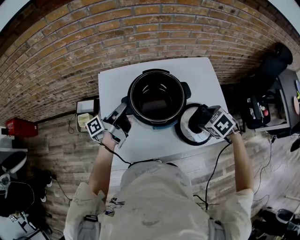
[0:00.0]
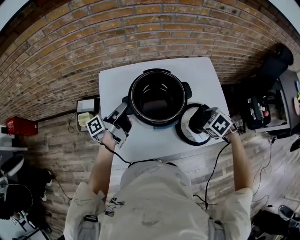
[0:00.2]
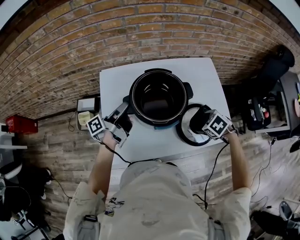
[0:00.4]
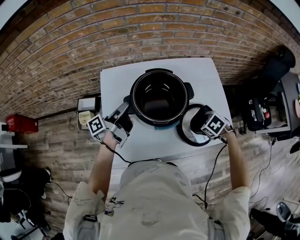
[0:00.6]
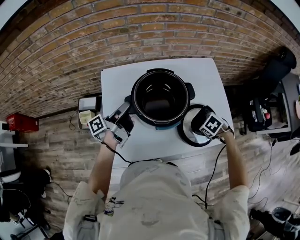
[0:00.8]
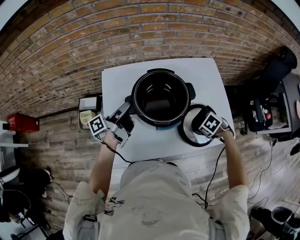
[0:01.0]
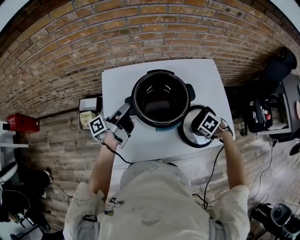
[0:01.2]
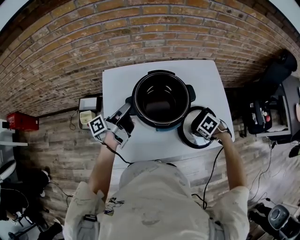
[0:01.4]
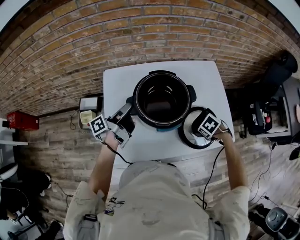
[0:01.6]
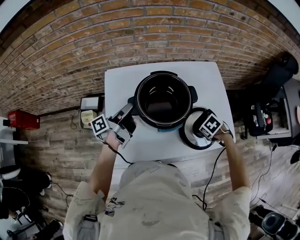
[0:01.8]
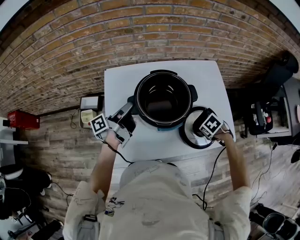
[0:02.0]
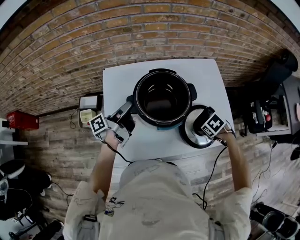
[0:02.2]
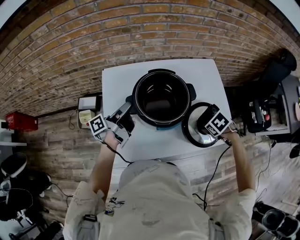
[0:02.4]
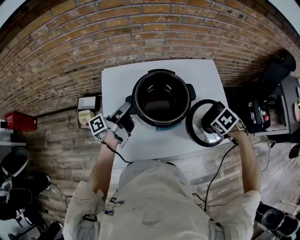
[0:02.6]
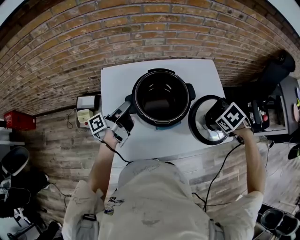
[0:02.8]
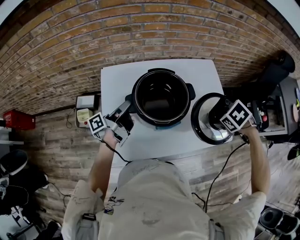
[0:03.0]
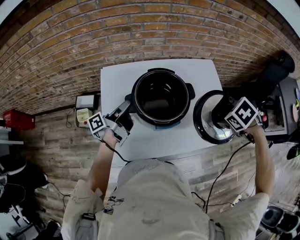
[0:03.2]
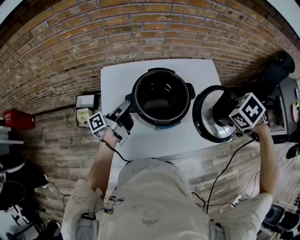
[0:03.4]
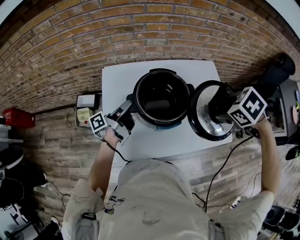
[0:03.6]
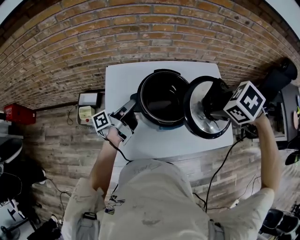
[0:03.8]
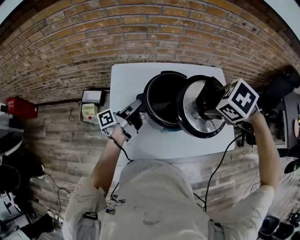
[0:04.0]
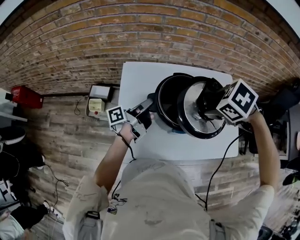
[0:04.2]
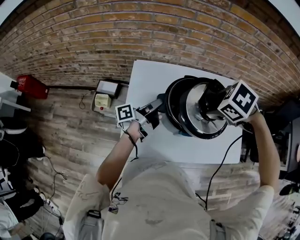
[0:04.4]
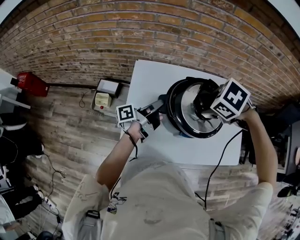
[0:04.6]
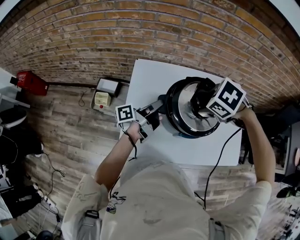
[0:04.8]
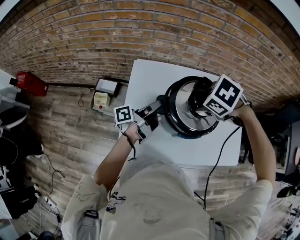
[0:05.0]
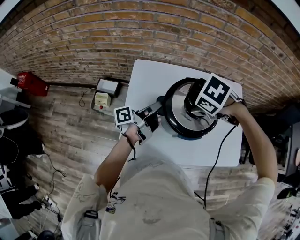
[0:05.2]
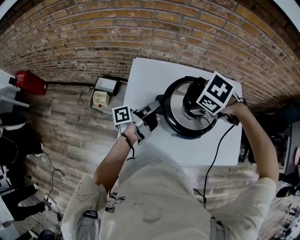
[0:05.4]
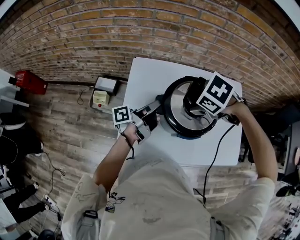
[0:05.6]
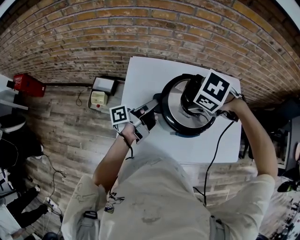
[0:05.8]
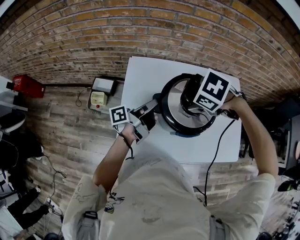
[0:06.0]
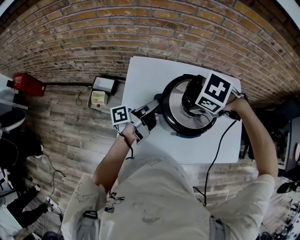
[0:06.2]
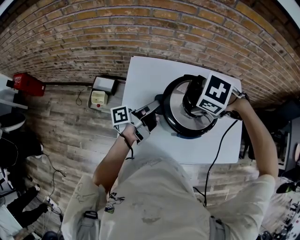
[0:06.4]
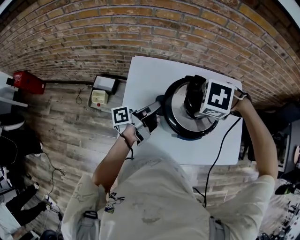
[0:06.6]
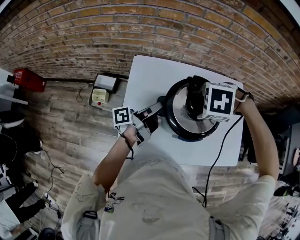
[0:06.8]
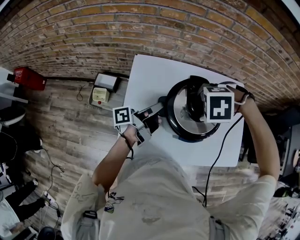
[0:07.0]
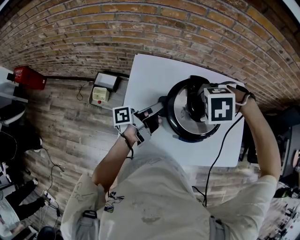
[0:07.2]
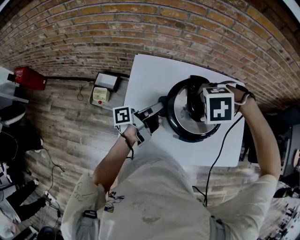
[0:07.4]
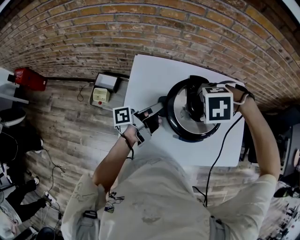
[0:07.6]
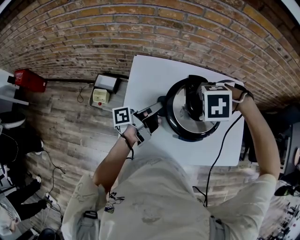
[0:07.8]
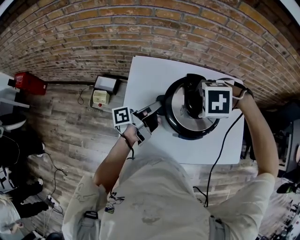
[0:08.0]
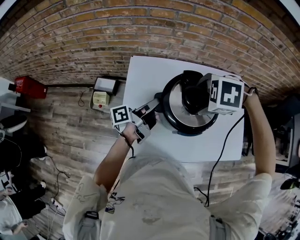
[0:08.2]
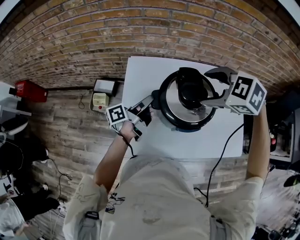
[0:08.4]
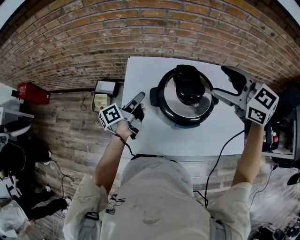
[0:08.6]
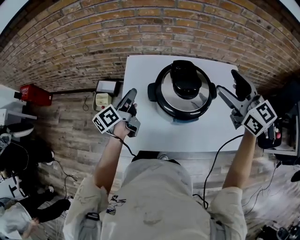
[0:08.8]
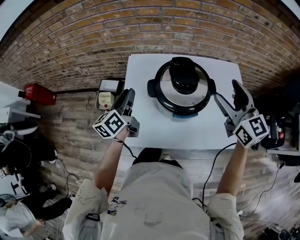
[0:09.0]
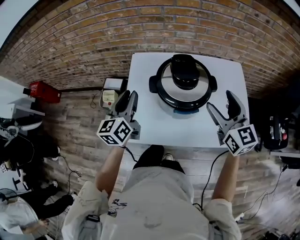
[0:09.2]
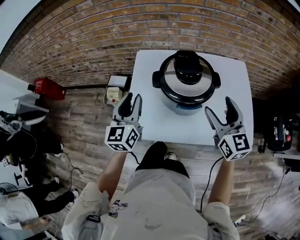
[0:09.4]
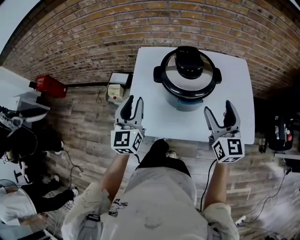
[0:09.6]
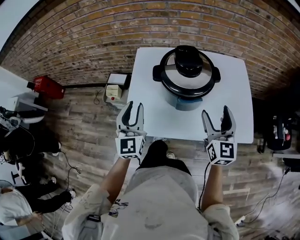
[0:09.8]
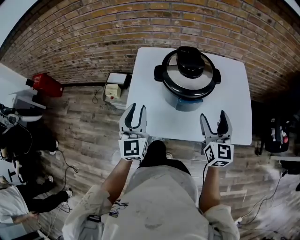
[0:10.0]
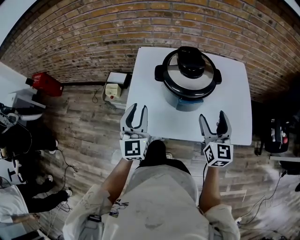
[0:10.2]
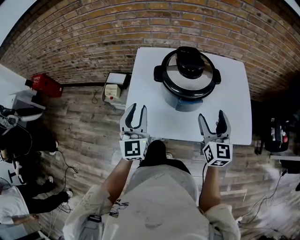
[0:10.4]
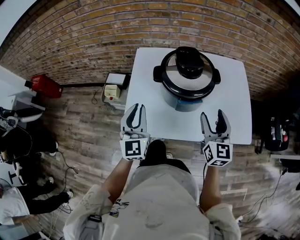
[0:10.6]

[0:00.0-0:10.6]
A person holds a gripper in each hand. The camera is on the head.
0:00.0 to 0:01.6: The right gripper goes roughly 10 cm downward.
0:01.6 to 0:03.0: The right gripper is displaced upward by approximately 15 cm.
0:03.0 to 0:04.6: The right gripper shifts by some 25 cm, and rotates roughly 30 degrees.
0:04.6 to 0:06.0: The grippers move only a little.
0:06.0 to 0:07.6: The right gripper rotates some 40 degrees.
0:07.6 to 0:09.0: The right gripper changes place by roughly 15 cm, and tips its fingers upward by roughly 80 degrees. The left gripper moves roughly 10 cm, and rolls clockwise, seen from behind, by roughly 50 degrees.
0:09.0 to 0:10.6: The left gripper shifts approximately 15 cm backward, and rotates around the line of its fingers by approximately 50 degrees, clockwise from behind; the right gripper travels downward and backward by about 15 cm, and swivels roughly 20 degrees.

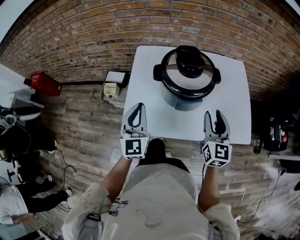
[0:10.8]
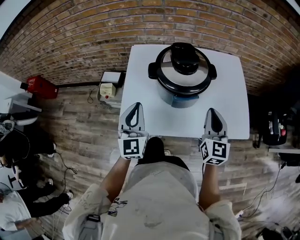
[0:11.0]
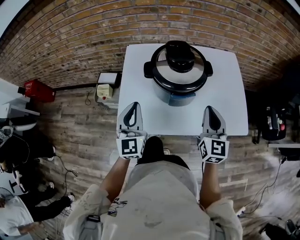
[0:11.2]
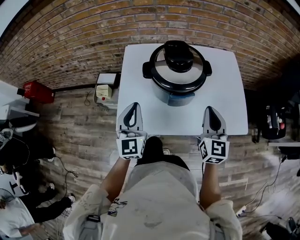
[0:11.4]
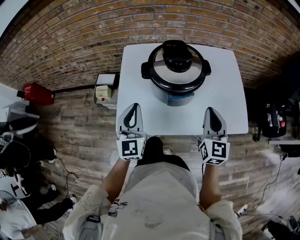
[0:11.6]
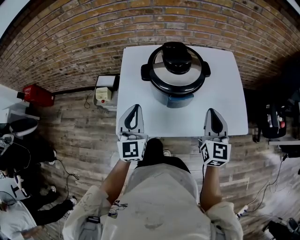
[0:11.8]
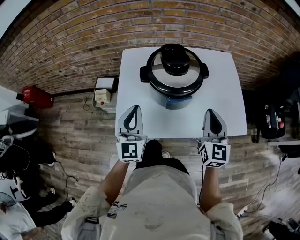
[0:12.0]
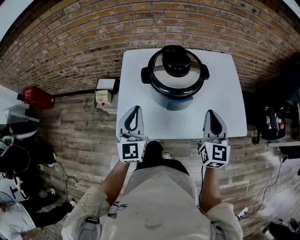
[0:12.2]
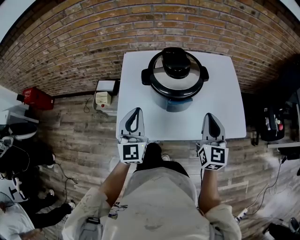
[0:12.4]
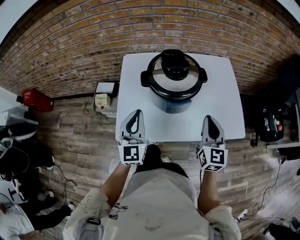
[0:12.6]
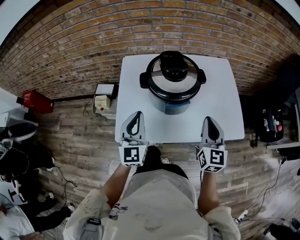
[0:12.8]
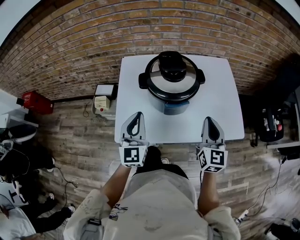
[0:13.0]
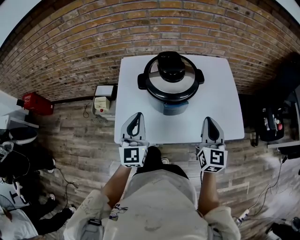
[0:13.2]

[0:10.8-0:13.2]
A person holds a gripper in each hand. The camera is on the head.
0:10.8 to 0:12.0: The right gripper closes its fingers.
0:12.0 to 0:13.2: The grippers stay close to where they were, moving slightly.

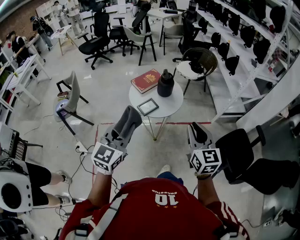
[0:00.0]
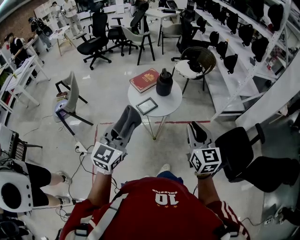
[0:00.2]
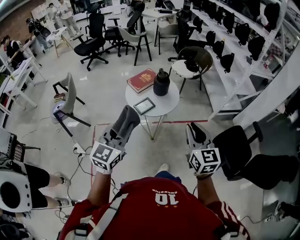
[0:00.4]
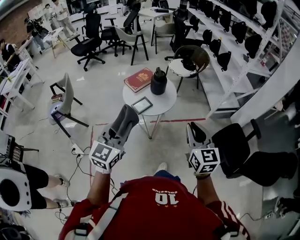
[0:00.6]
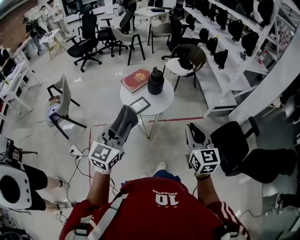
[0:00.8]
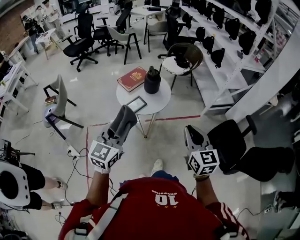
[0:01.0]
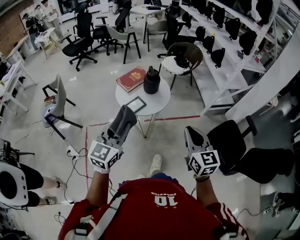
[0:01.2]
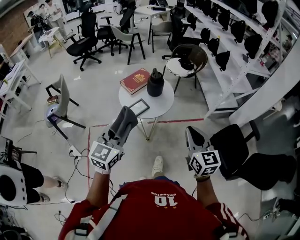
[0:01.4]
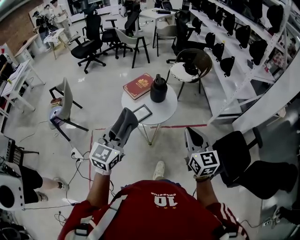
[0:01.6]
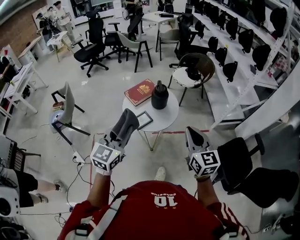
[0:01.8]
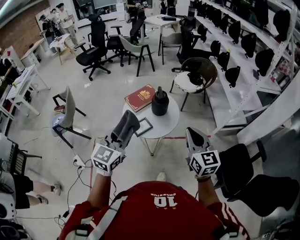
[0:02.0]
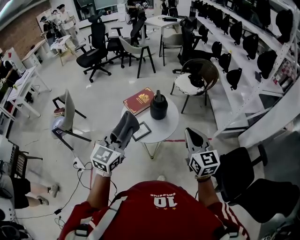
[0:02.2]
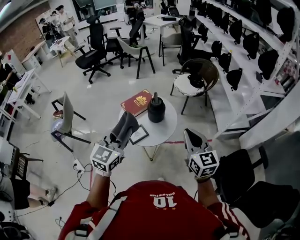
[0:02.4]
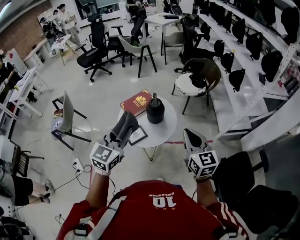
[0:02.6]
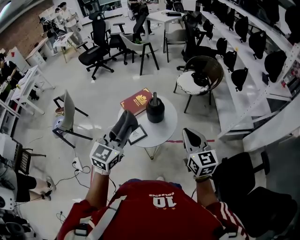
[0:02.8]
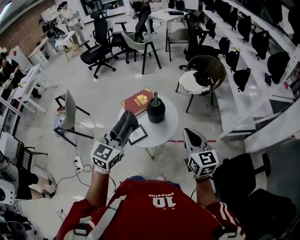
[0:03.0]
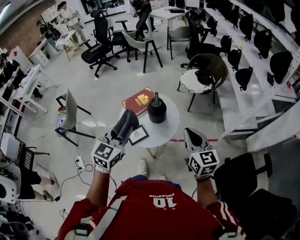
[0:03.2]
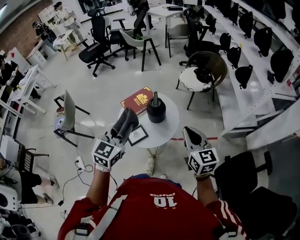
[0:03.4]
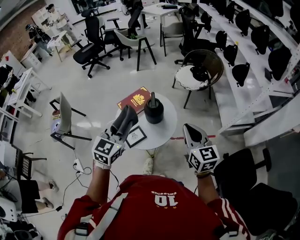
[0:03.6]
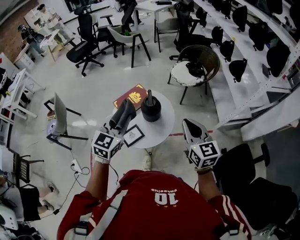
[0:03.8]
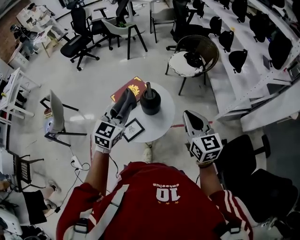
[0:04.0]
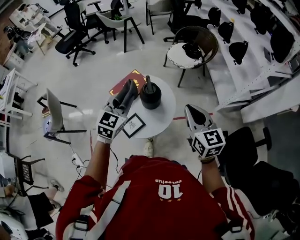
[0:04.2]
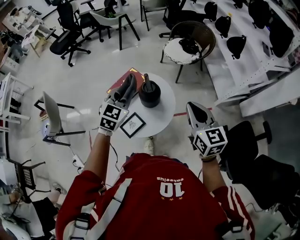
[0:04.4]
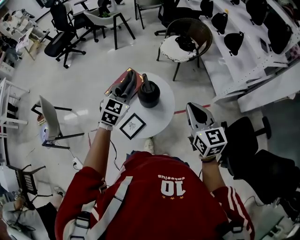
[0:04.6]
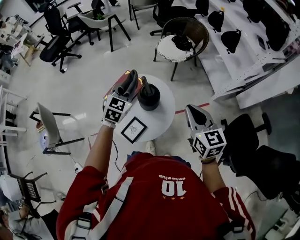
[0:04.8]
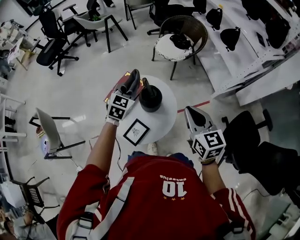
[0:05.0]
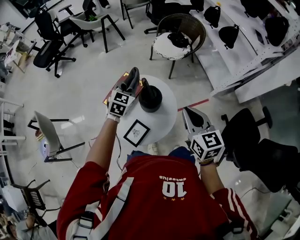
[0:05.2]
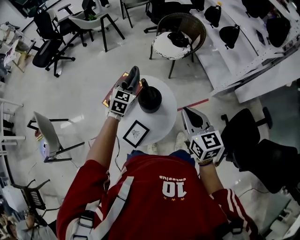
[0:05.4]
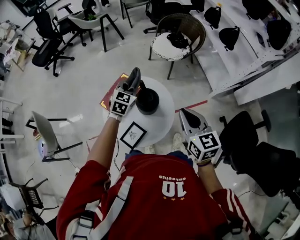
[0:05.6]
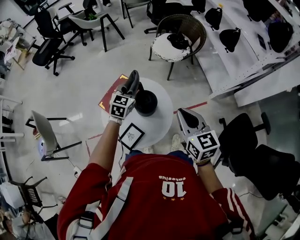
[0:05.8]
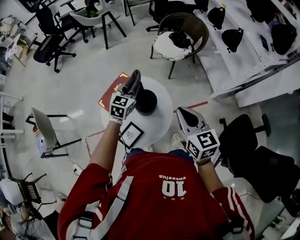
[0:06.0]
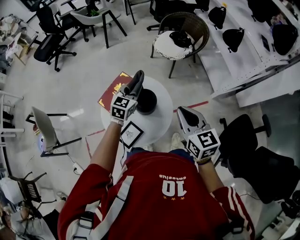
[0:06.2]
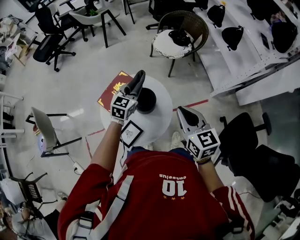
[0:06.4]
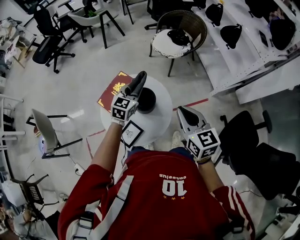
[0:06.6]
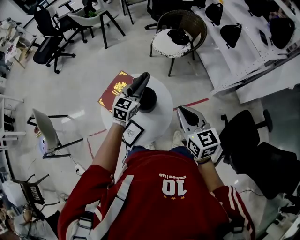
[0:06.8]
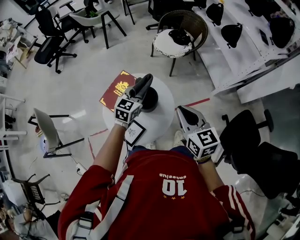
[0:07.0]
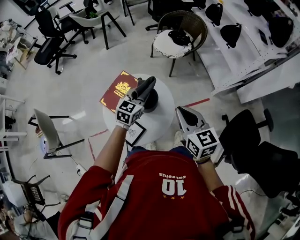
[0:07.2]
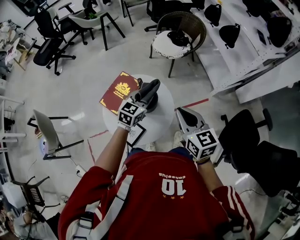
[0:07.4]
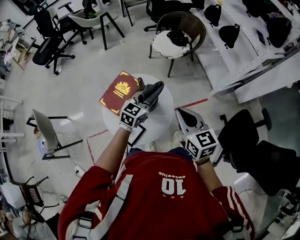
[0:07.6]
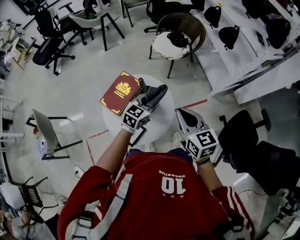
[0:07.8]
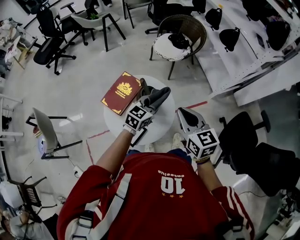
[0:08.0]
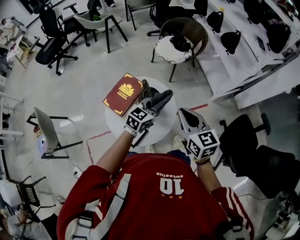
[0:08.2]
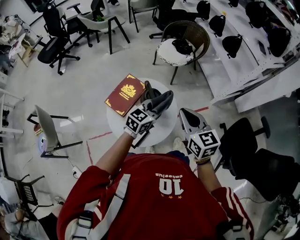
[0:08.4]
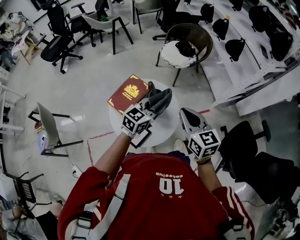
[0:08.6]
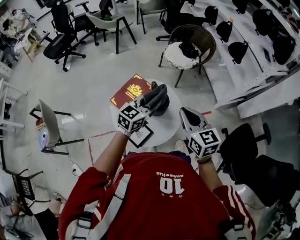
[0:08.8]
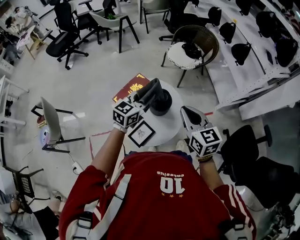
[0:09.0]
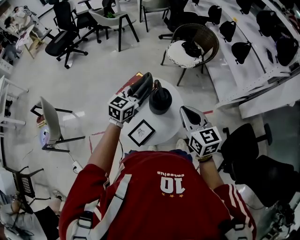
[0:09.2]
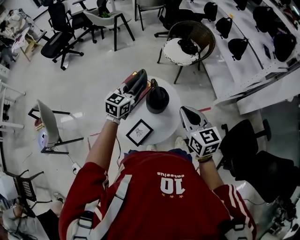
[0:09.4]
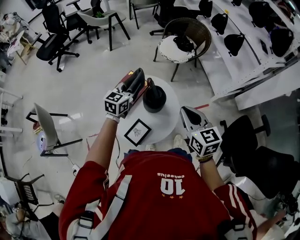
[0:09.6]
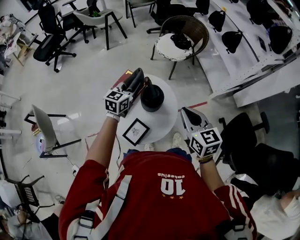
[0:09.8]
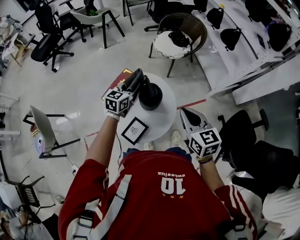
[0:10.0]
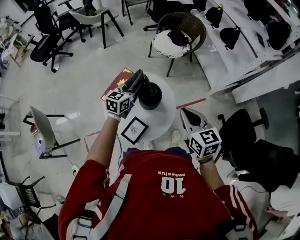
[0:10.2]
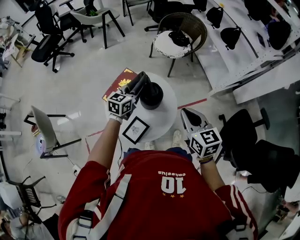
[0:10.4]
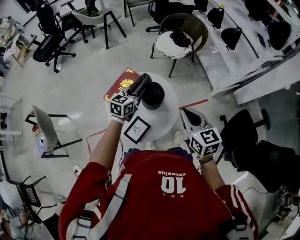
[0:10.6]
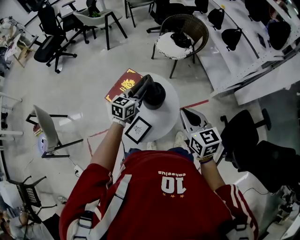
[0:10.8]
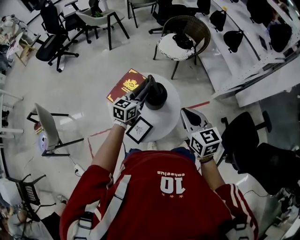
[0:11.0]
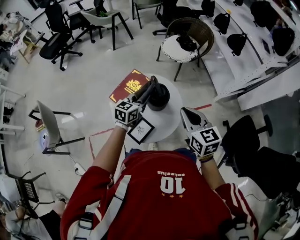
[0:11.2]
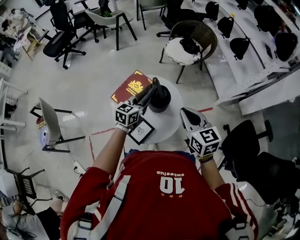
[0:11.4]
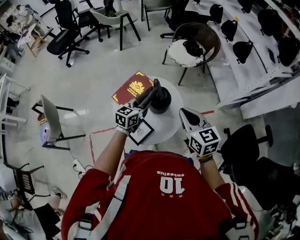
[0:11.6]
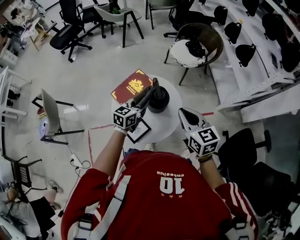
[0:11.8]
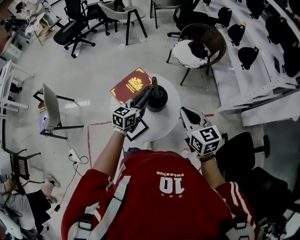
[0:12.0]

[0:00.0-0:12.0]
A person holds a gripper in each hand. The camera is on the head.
0:00.0 to 0:01.6: Both grippers move forward, approximately 5 cm.
0:01.6 to 0:03.0: The left gripper shifts approximately 25 cm forward and to the right. Meanwhile the right gripper goes roughly 25 cm forward.
0:03.0 to 0:04.4: The left gripper travels forward and downward by roughly 25 cm. The right gripper shifts approximately 10 cm forward.
0:04.4 to 0:06.0: The right gripper shifts roughly 5 cm forward, while the left gripper heads forward and downward, covering roughly 20 cm.
0:06.0 to 0:07.6: The left gripper heads to the right and backward, covering about 10 cm.
0:07.6 to 0:09.0: The left gripper is displaced to the left and upward by roughly 10 cm. The right gripper goes some 5 cm to the left.
0:09.0 to 0:10.4: The right gripper moves approximately 5 cm. Meanwhile the left gripper moves downward and forward, approximately 10 cm.
0:10.4 to 0:12.0: The left gripper goes about 5 cm backward.
